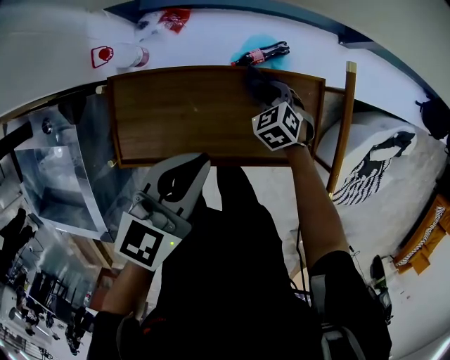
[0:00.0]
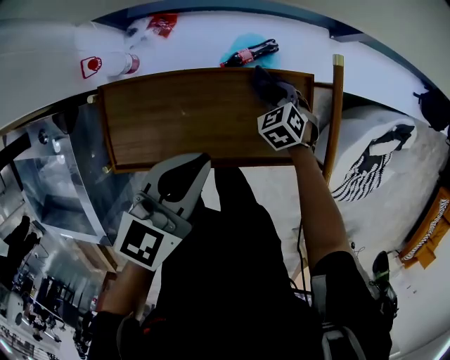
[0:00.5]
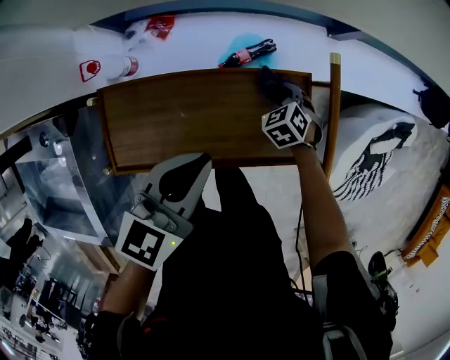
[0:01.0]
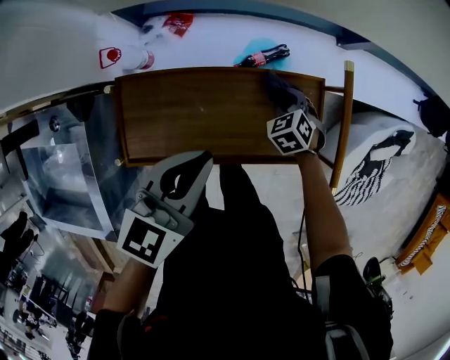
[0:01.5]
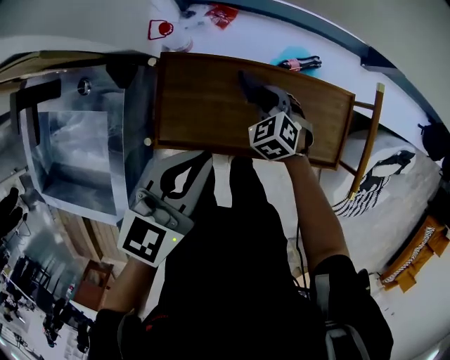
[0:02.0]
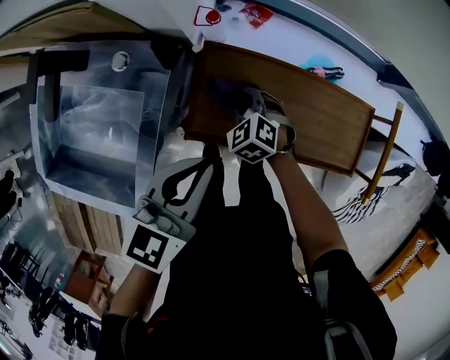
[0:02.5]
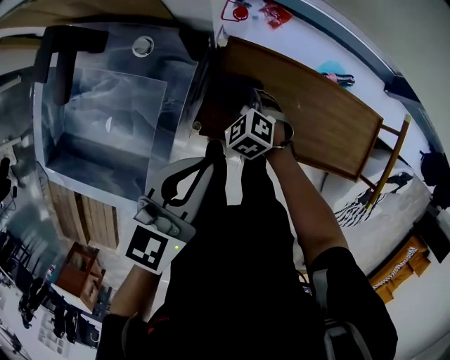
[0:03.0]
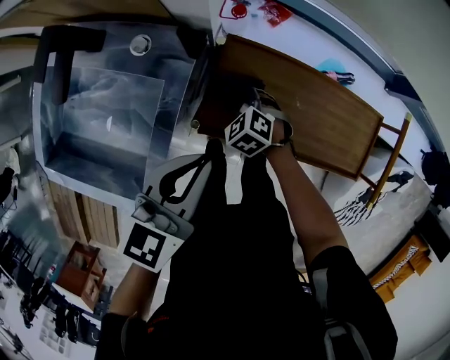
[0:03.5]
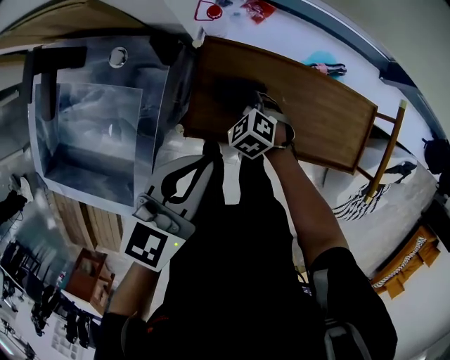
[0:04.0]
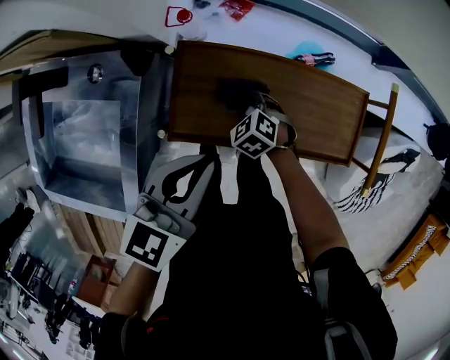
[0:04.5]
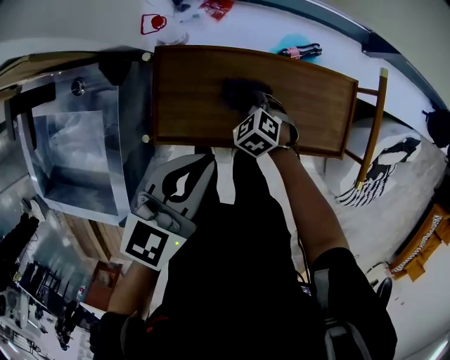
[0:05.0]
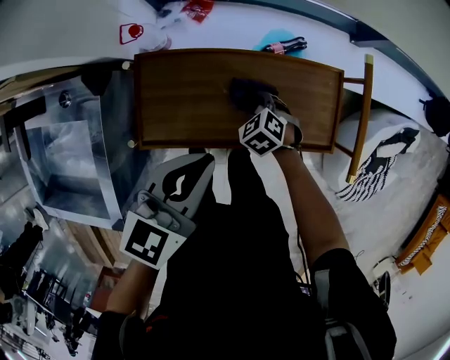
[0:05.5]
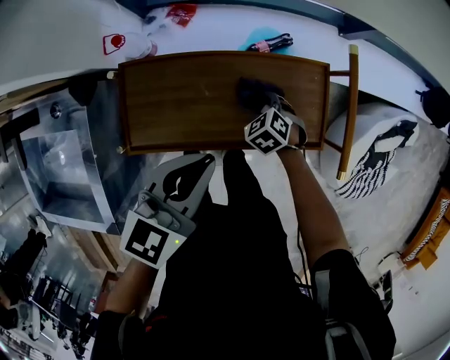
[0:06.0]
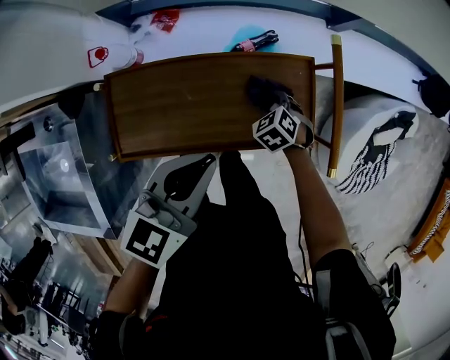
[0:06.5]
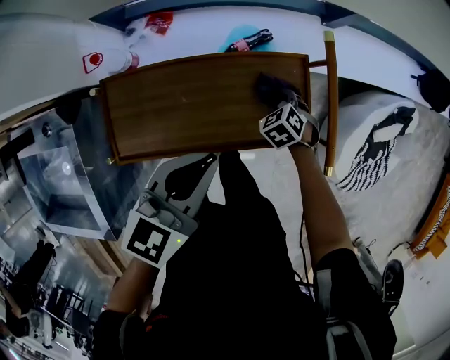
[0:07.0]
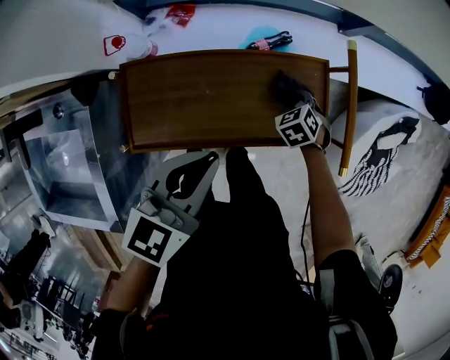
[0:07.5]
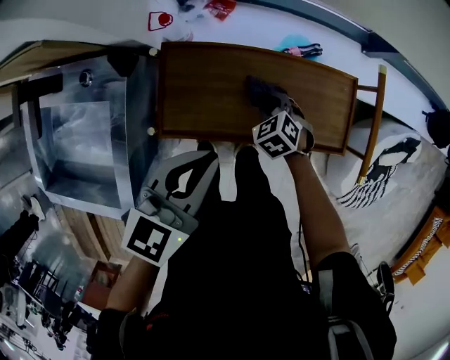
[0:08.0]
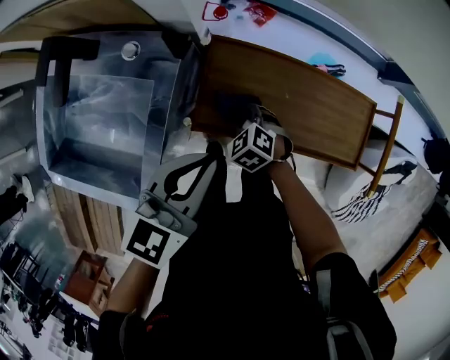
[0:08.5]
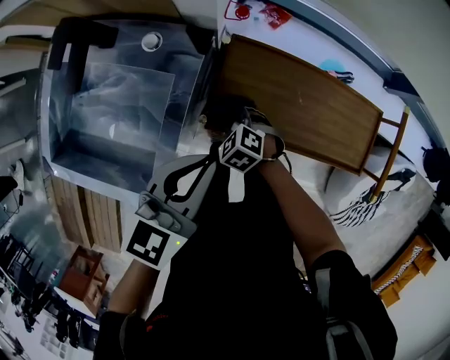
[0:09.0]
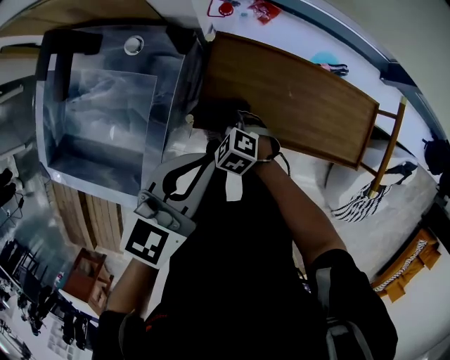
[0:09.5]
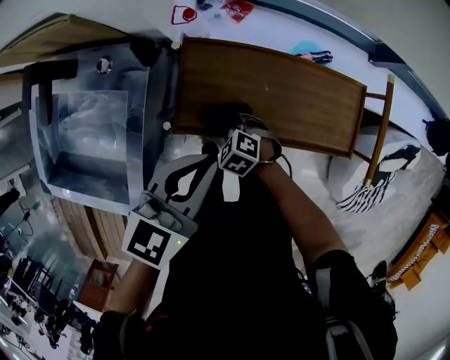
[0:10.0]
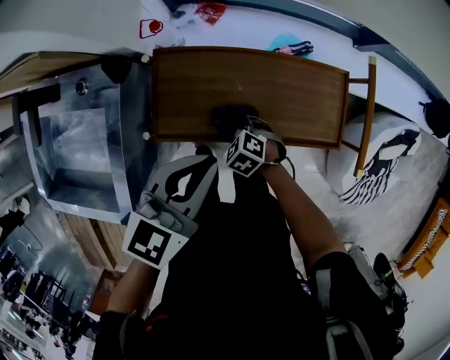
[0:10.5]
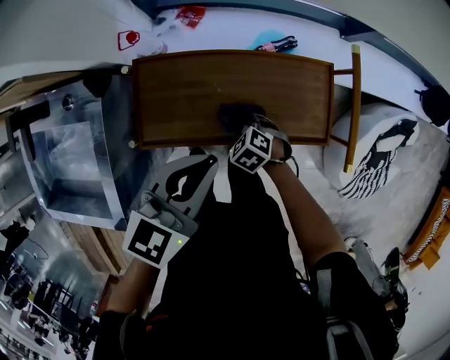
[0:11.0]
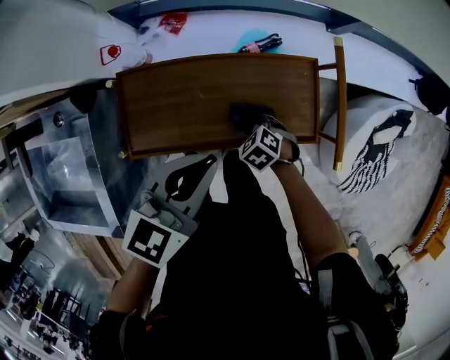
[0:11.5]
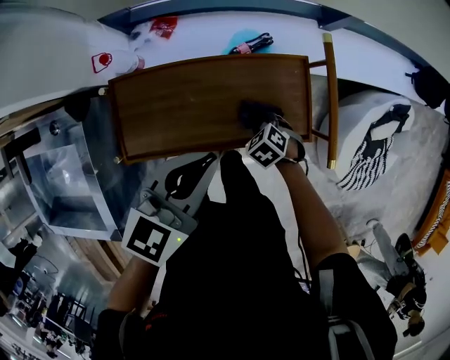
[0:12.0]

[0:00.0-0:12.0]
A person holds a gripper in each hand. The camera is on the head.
0:00.0 to 0:02.0: The two grippers go some 15 cm to the left and backward.
0:02.0 to 0:04.0: The left gripper travels to the left by some 10 cm. The right gripper is displaced to the left by approximately 15 cm.
0:04.0 to 0:06.0: Both grippers travel together to the right, some 25 cm.
0:06.0 to 0:08.0: The right gripper shifts roughly 10 cm to the left, while the left gripper heads to the left and backward, covering about 10 cm.
0:08.0 to 0:10.0: The right gripper changes place by about 20 cm, and swivels about 20 degrees.
0:10.0 to 0:12.0: The left gripper ends up approximately 20 cm from where it was; the right gripper moves some 30 cm, and changes its angle by some 30 degrees.

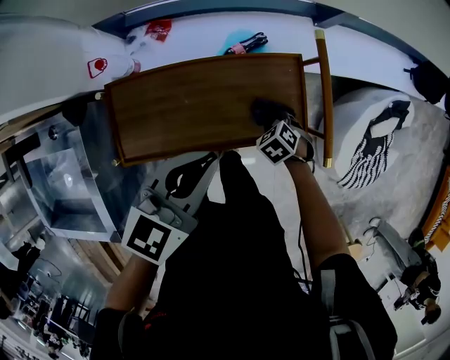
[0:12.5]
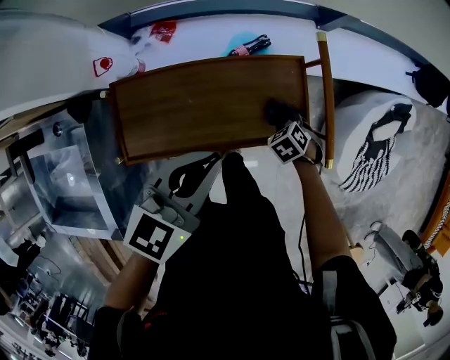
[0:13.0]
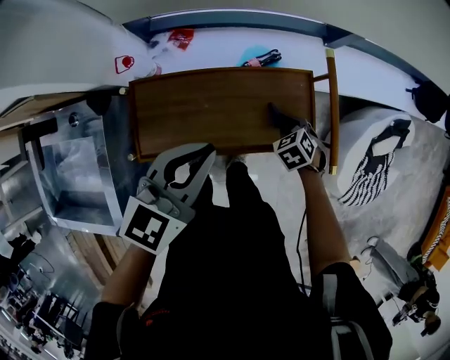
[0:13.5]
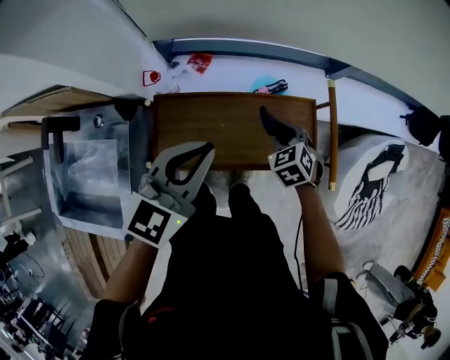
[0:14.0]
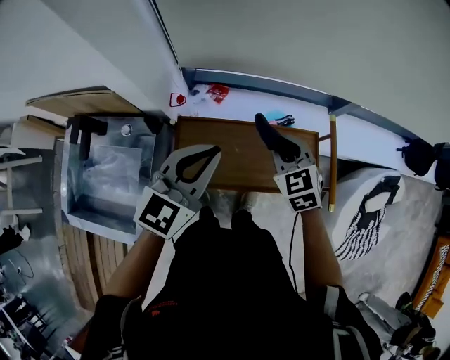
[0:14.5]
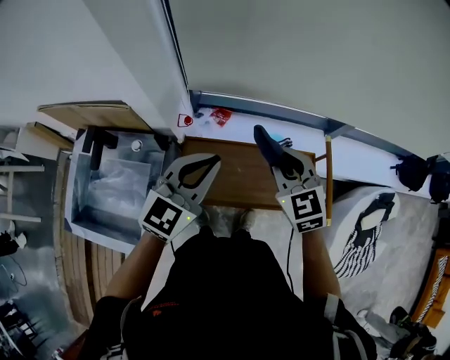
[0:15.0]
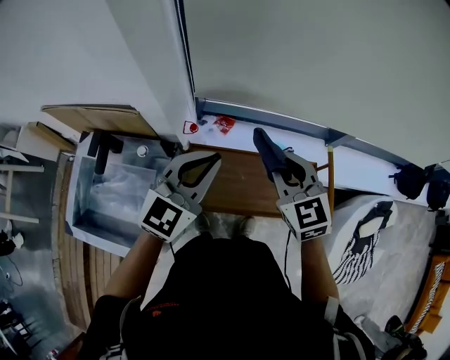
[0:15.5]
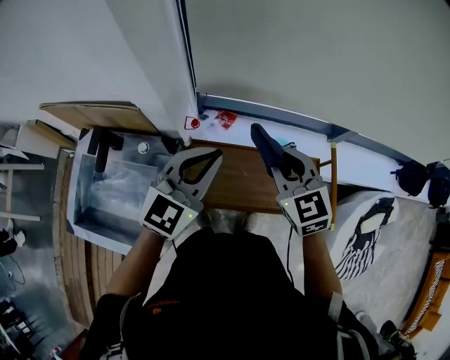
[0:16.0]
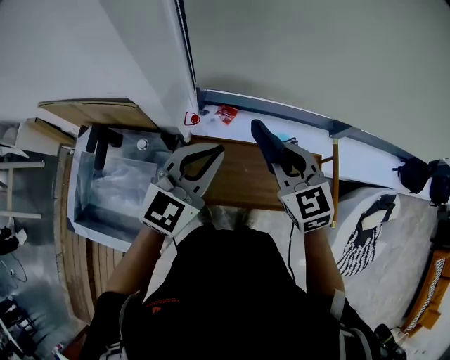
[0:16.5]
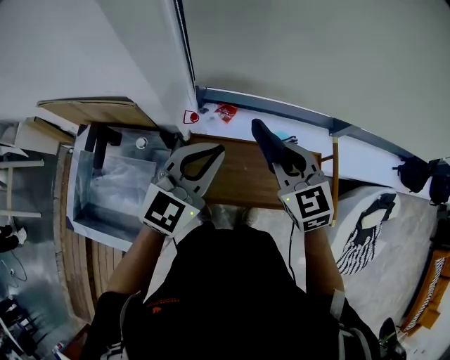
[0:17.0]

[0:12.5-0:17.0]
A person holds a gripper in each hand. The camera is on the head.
0:12.5 to 0:14.5: The left gripper shifts some 15 cm upward, and turns by some 20 degrees; the right gripper travels upward by some 35 cm, and tips its fingers upward by approximately 40 degrees.
0:14.5 to 0:17.0: The left gripper shifts roughly 5 cm to the left. The right gripper is displaced upward and to the left by about 15 cm.

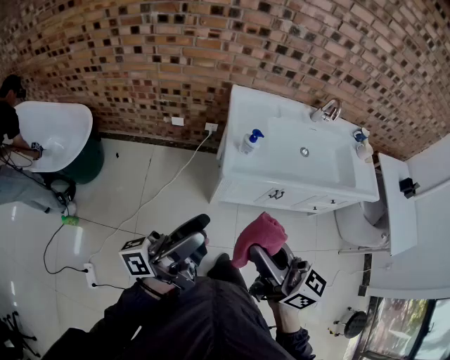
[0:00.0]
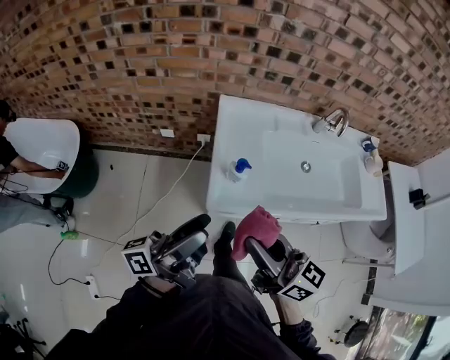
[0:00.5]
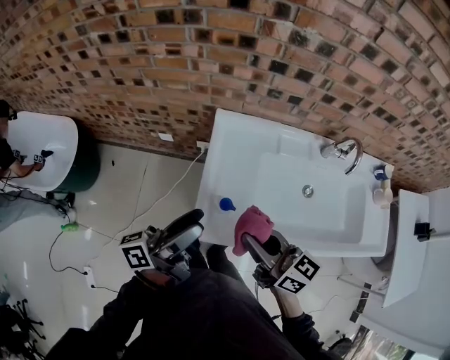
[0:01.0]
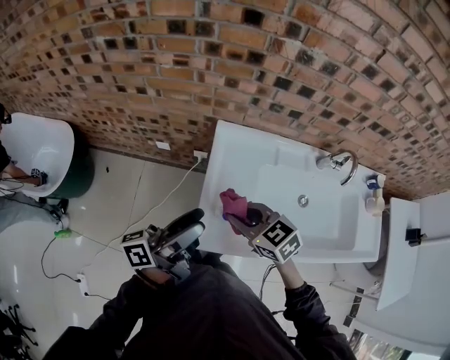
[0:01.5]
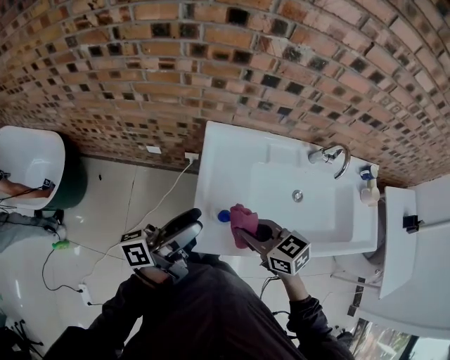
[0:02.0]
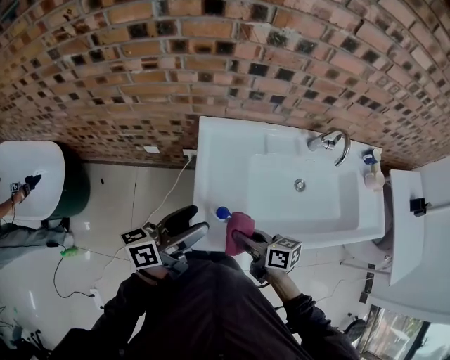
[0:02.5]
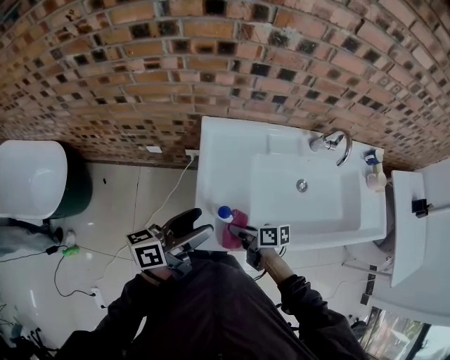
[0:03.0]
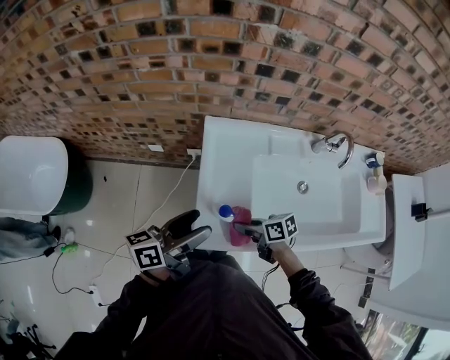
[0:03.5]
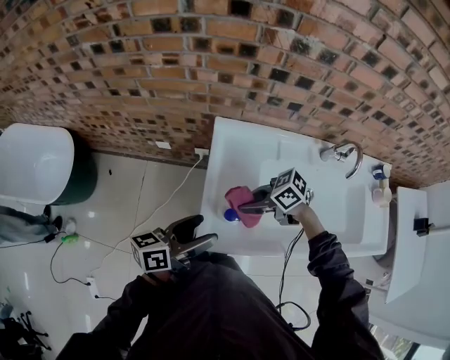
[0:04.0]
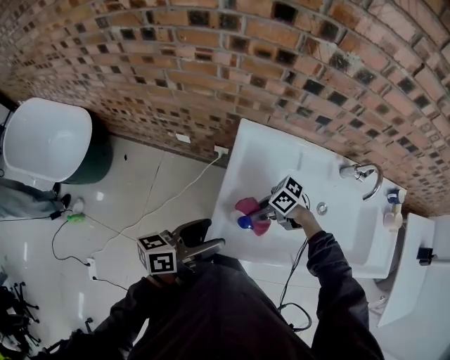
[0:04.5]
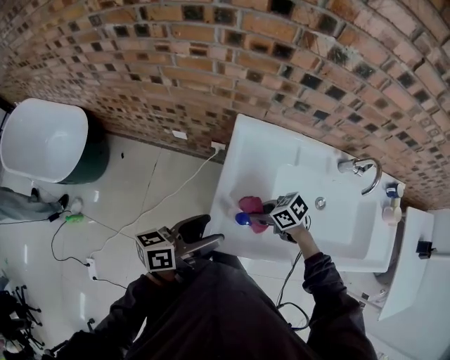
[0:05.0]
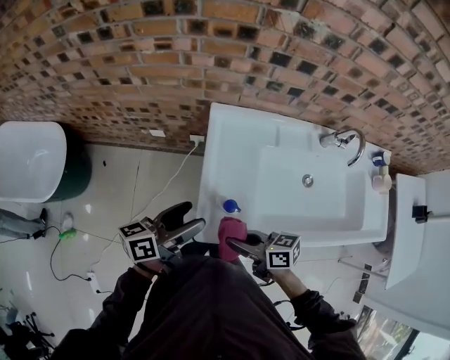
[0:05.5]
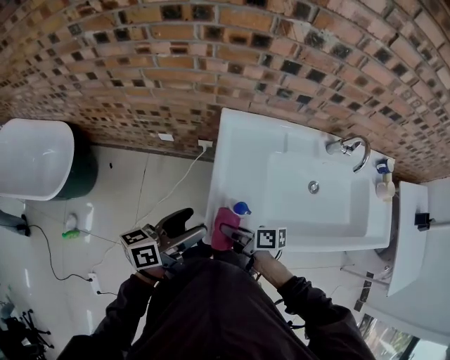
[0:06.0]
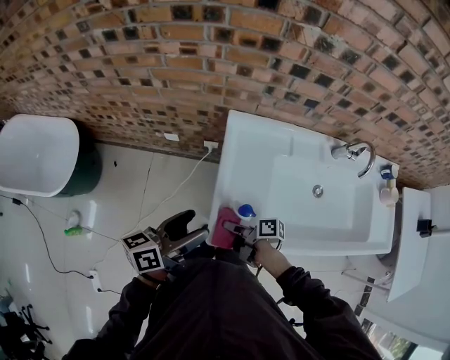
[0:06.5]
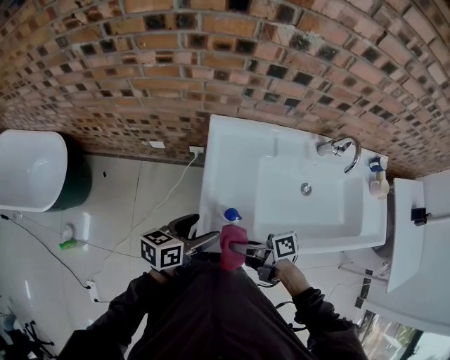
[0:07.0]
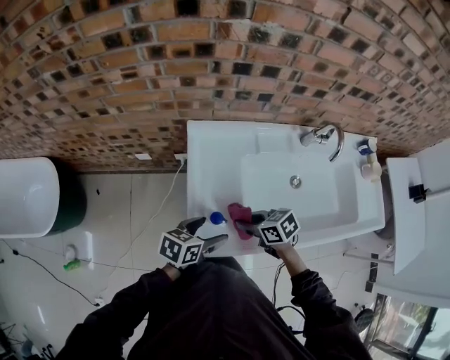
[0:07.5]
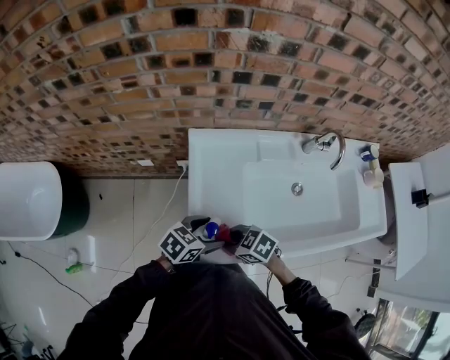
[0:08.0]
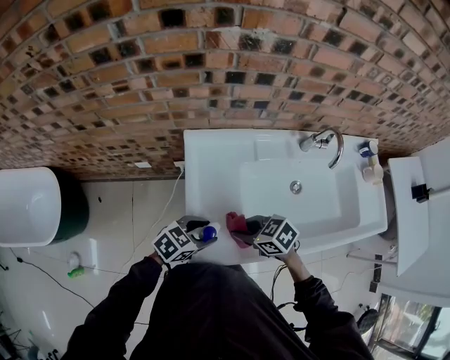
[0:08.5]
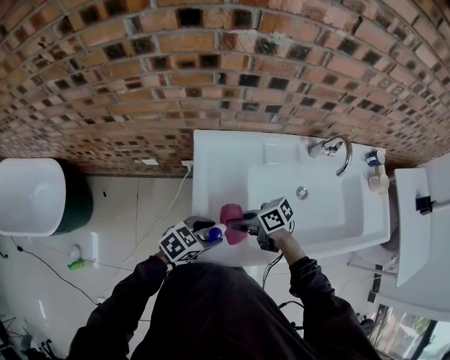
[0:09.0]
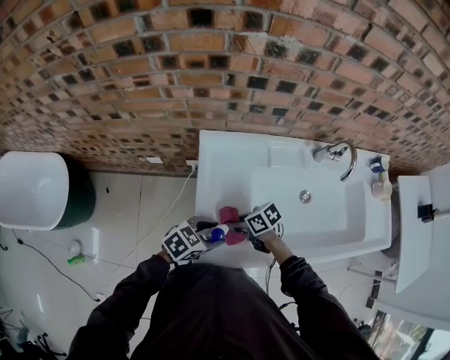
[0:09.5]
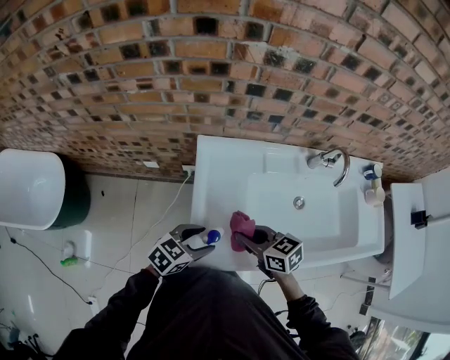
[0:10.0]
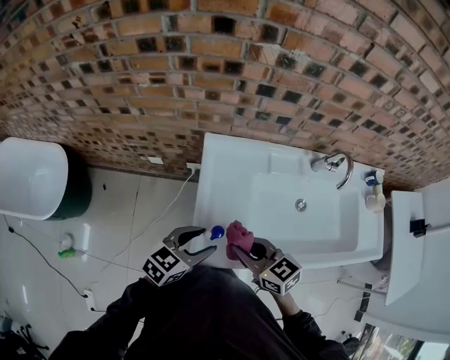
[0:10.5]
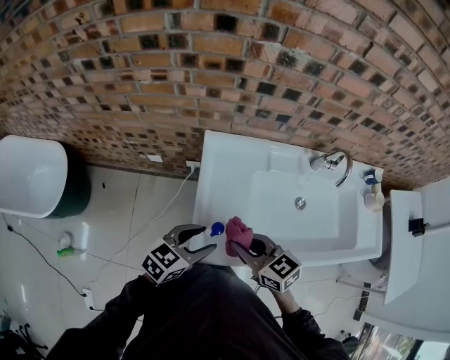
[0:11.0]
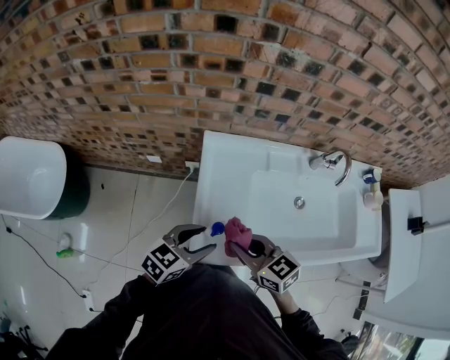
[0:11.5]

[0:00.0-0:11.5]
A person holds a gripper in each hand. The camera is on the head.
0:00.0 to 0:02.0: The left gripper is displaced forward by roughly 35 cm; the right gripper shifts about 40 cm forward and downward, and points its fingers approximately 40 degrees further downward.
0:02.0 to 0:04.0: Both grippers travel together downward, approximately 5 cm. The left gripper changes its angle by about 30 degrees. Meanwhile the right gripper changes its angle by some 40 degrees.
0:04.0 to 0:06.0: The left gripper ends up some 5 cm from where it was; the right gripper moves up and down over about 10 cm, changing direction 2 times, and swivels about 60 degrees.
0:06.0 to 0:07.5: The right gripper moves up and down over approximately 10 cm, changing direction 2 times, and swivels approximately 40 degrees, while the left gripper moves about 15 cm, and turns by approximately 40 degrees.
0:07.5 to 0:09.5: The left gripper turns by some 30 degrees, and closes its fingers; the right gripper moves roughly 10 cm.
0:09.5 to 0:11.5: The left gripper goes some 10 cm upward, and swivels roughly 20 degrees. Meanwhile the right gripper goes about 20 cm upward, and turns by about 40 degrees.
